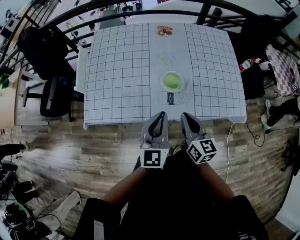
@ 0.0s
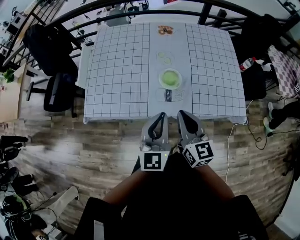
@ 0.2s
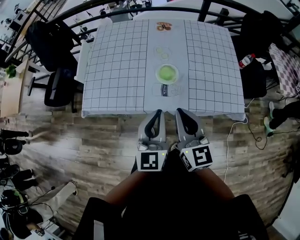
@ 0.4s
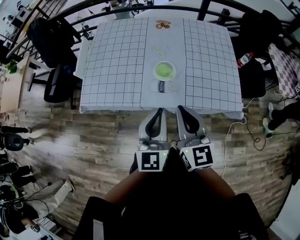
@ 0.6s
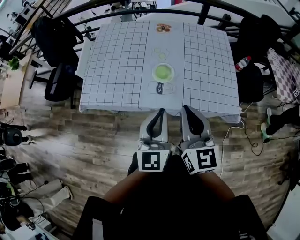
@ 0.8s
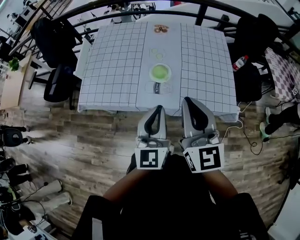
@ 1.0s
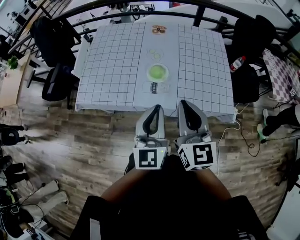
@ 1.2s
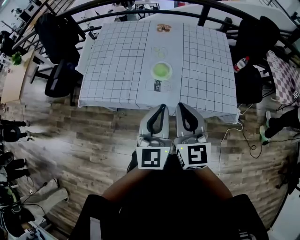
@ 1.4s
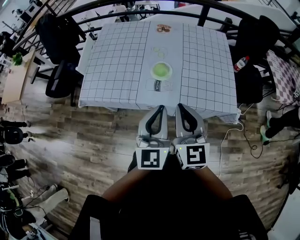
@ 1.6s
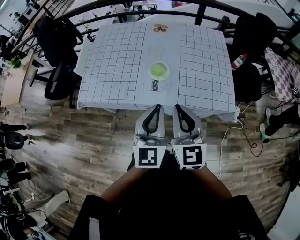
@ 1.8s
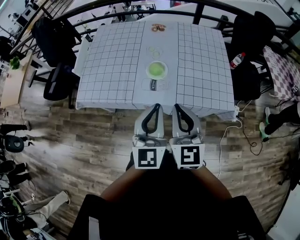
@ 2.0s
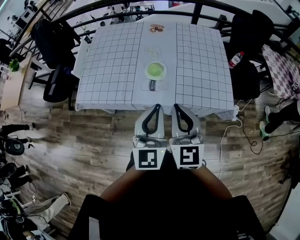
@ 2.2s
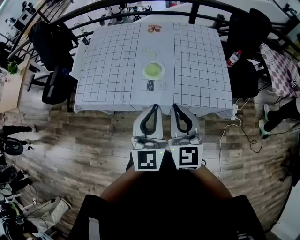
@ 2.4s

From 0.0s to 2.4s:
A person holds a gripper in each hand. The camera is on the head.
From 0.0s to 1.2s: The right gripper travels upward, to the right and backward by roughly 20 cm, and rotates some 20 degrees, while the left gripper moves to the right, backward and upward, about 15 cm.
From 1.2s to 2.4s: The grippers stay close to where they were, moving slightly.

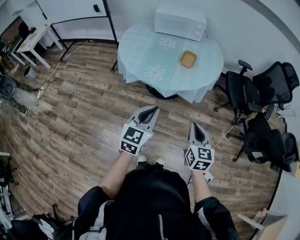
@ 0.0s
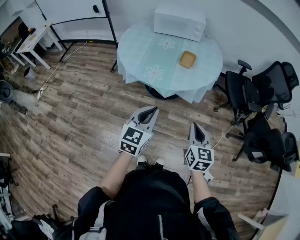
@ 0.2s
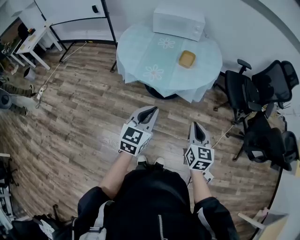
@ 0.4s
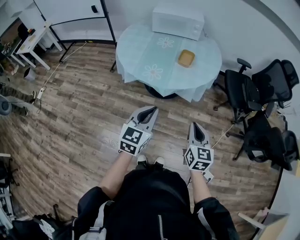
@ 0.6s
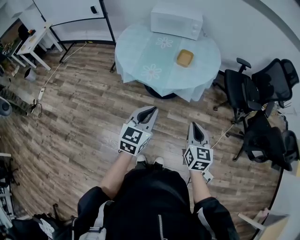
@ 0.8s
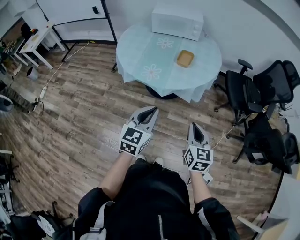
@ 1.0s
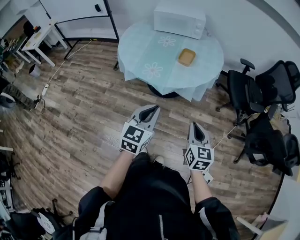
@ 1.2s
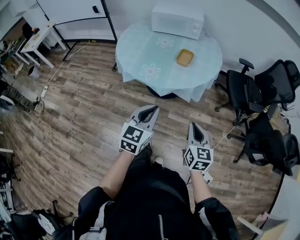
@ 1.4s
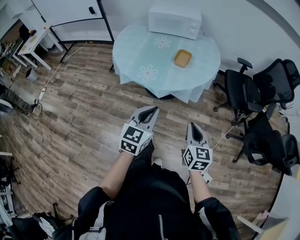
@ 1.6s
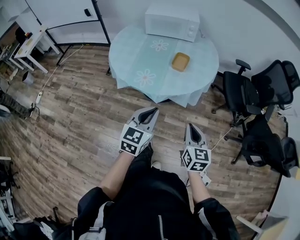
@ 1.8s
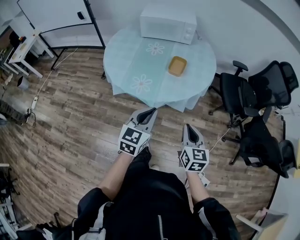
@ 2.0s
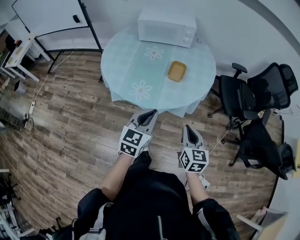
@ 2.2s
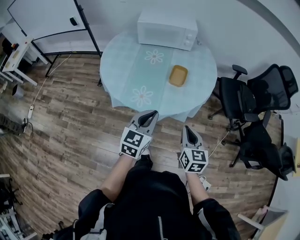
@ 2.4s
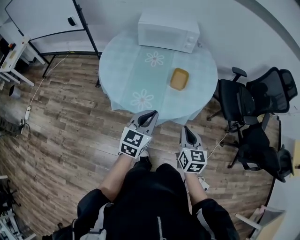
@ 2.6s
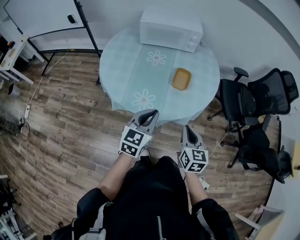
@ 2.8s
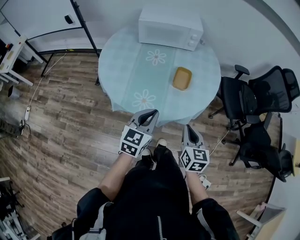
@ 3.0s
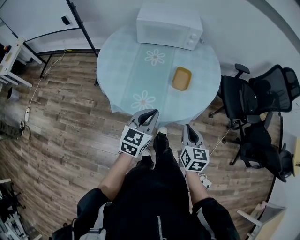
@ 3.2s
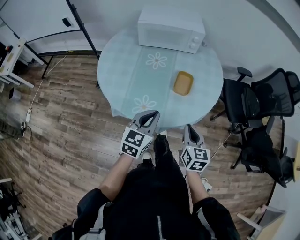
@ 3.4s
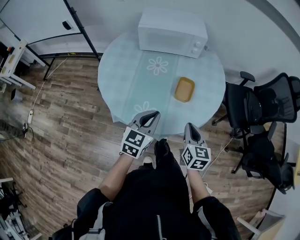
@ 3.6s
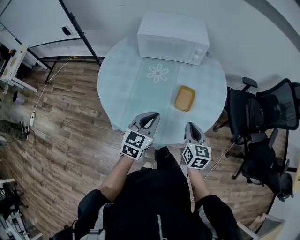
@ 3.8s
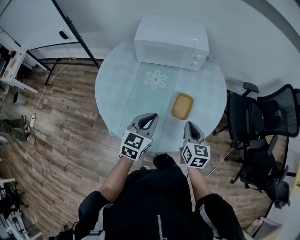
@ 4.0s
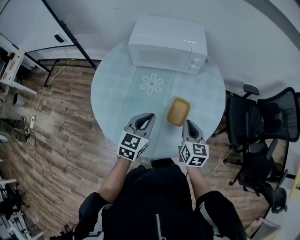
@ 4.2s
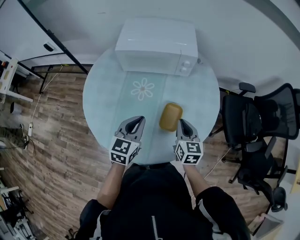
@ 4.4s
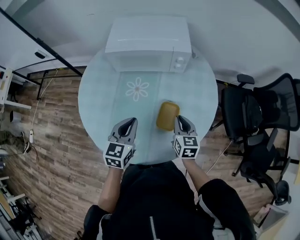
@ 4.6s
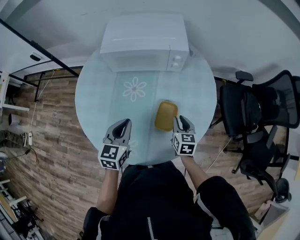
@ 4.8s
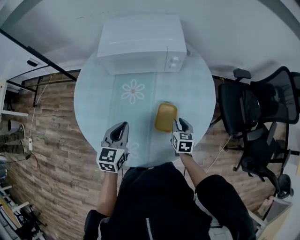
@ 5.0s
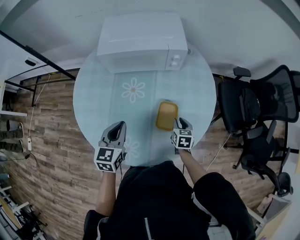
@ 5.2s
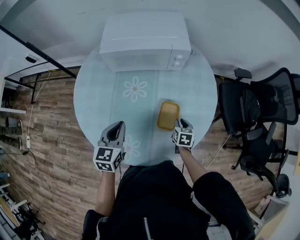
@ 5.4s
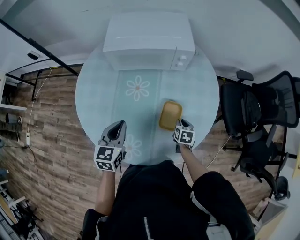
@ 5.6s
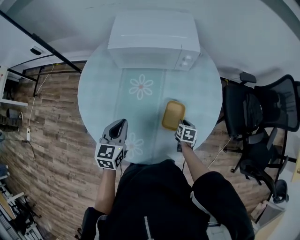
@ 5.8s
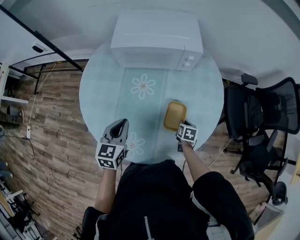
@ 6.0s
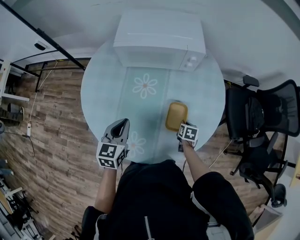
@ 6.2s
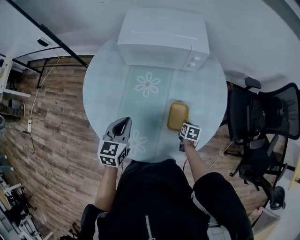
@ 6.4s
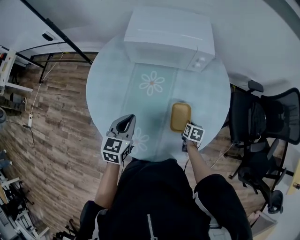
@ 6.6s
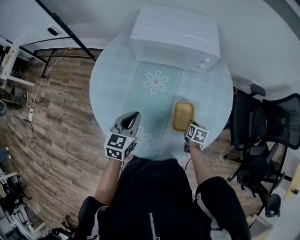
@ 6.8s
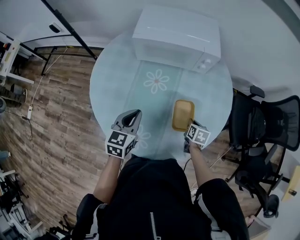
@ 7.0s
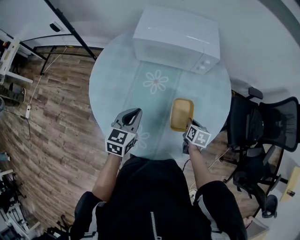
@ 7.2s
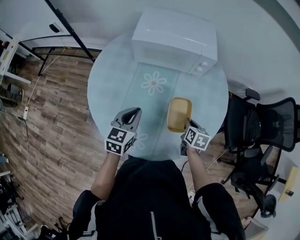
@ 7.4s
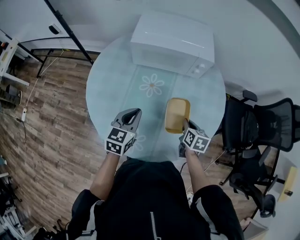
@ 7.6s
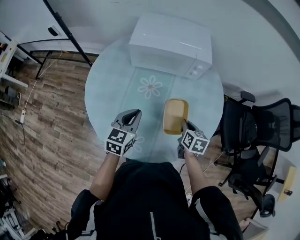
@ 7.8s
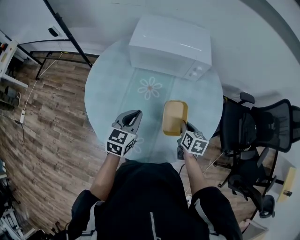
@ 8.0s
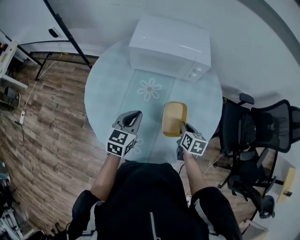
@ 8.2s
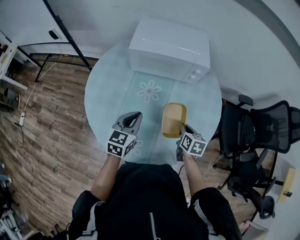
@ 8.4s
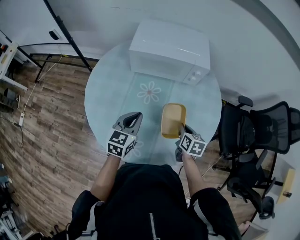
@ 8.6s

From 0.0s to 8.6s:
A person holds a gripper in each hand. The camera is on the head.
From 0.0s to 1.4s: Both grippers travel together to the right, roughly 5 cm.
From 1.4s to 2.8s: Both grippers move forward and to the left, some 25 cm.
From 2.8s to 4.4s: Both grippers move forward, some 30 cm.
From 4.4s to 5.8s: The left gripper goes about 10 cm to the left. Meanwhile the right gripper travels downward by some 20 cm, and angles its fingers downward, by about 30 degrees.
From 5.8s to 7.2s: The right gripper heads upward, covering roughly 10 cm.
From 7.2s to 8.6s: The right gripper is displaced upward by approximately 5 cm.

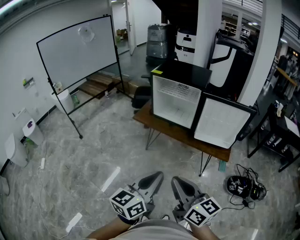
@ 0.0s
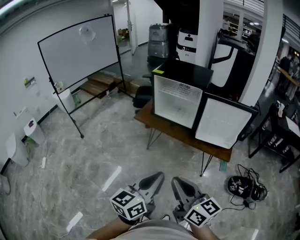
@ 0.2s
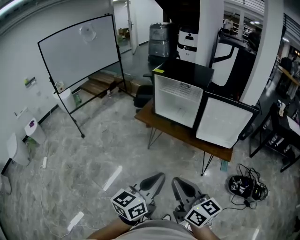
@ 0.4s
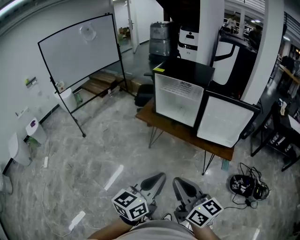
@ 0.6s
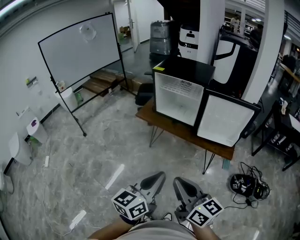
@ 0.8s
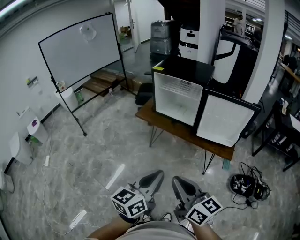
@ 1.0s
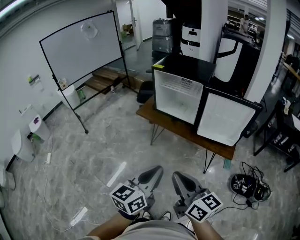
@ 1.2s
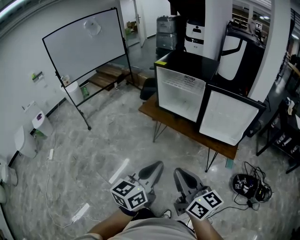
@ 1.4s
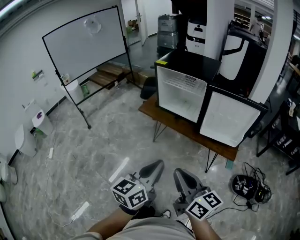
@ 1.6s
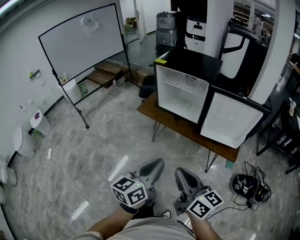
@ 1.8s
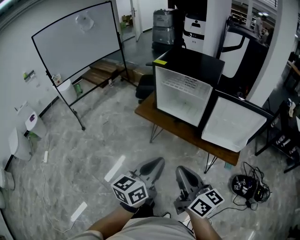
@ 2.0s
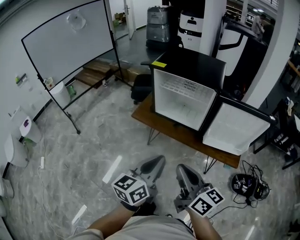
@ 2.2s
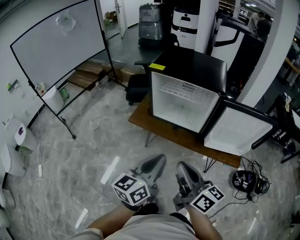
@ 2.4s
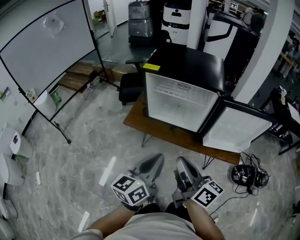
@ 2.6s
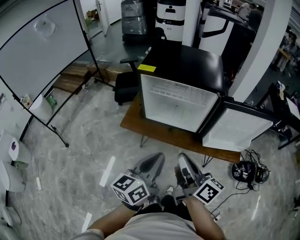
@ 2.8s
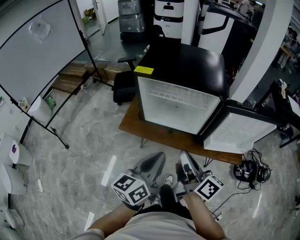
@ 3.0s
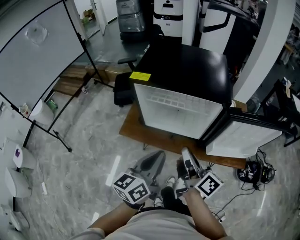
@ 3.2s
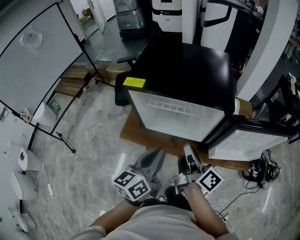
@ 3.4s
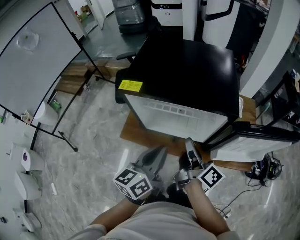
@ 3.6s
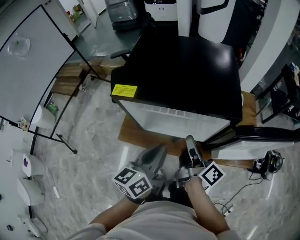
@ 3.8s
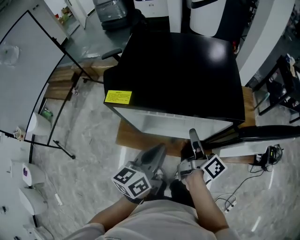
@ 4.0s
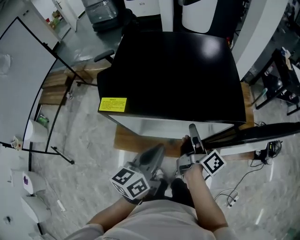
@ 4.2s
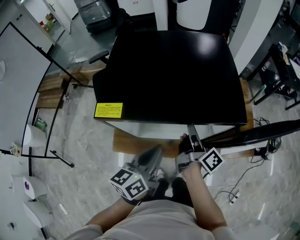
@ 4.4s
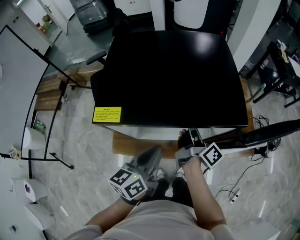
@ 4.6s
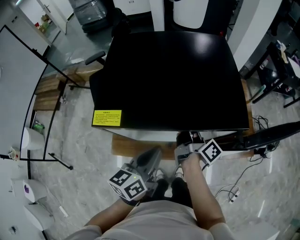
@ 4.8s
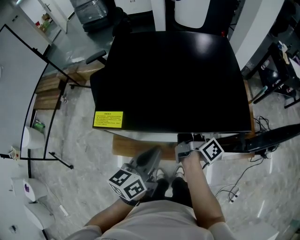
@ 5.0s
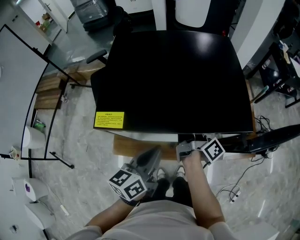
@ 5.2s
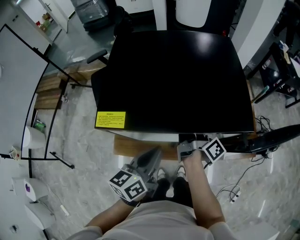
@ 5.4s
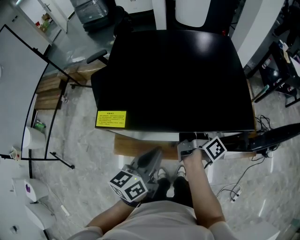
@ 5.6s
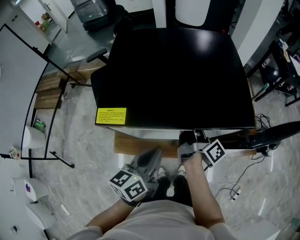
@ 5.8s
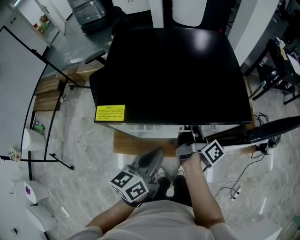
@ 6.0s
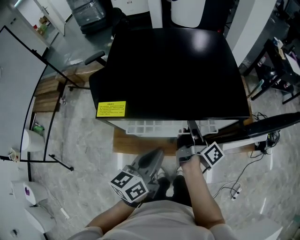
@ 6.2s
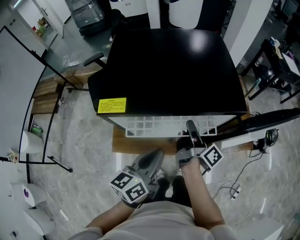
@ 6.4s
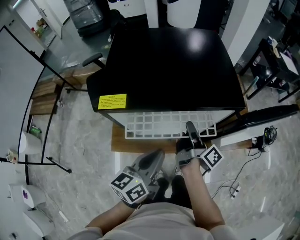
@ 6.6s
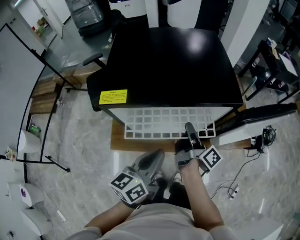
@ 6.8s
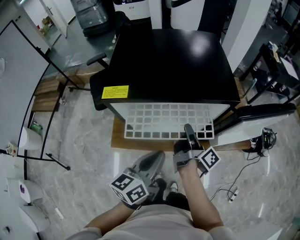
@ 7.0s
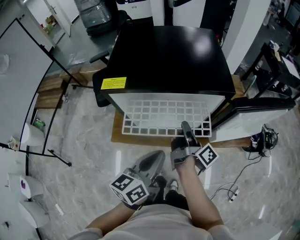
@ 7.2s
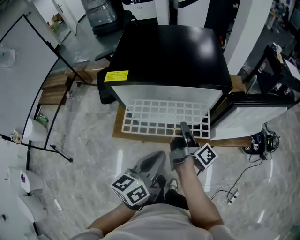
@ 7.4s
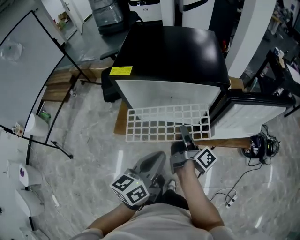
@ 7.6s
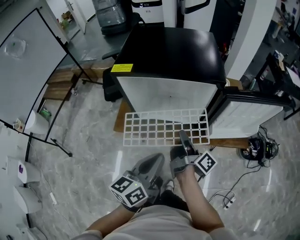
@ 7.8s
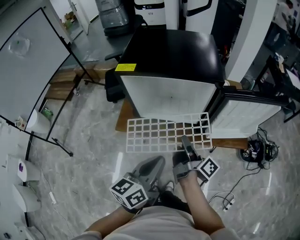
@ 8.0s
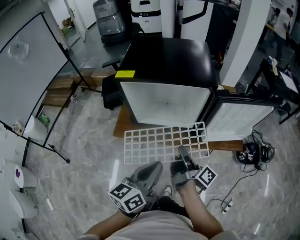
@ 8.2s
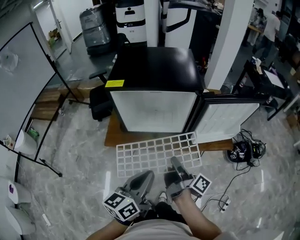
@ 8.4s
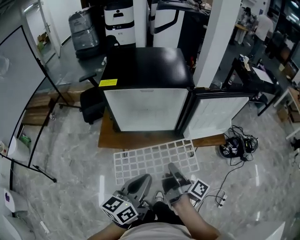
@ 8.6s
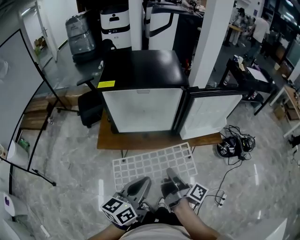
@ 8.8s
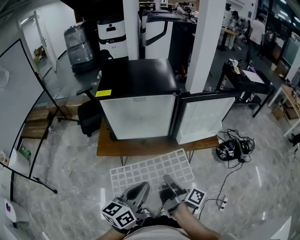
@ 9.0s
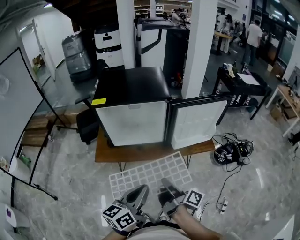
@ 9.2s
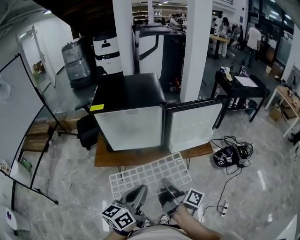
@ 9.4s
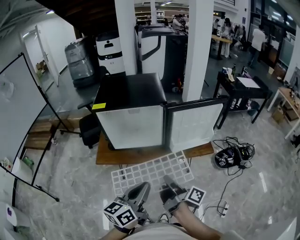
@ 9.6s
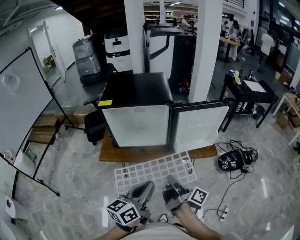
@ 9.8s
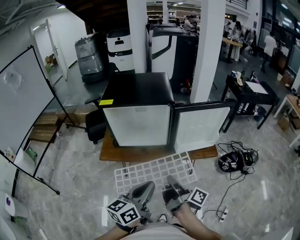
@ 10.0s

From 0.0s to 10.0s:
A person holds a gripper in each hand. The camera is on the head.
From 0.0s to 1.4s: The right gripper ends up about 5 cm from where it was.
From 1.4s to 2.8s: Both grippers travel together forward, approximately 30 cm. The right gripper turns by some 30 degrees.
From 2.8s to 4.2s: The right gripper moves forward and downward, approximately 30 cm, swivels some 40 degrees, and opens up. The left gripper is displaced forward by approximately 25 cm.
From 4.2s to 5.8s: The right gripper shifts by approximately 5 cm.
From 5.8s to 7.2s: The left gripper is displaced backward and to the right by about 10 cm, while the right gripper travels backward by some 10 cm.
From 7.2s to 8.6s: The two grippers go about 20 cm backward.
From 8.6s to 10.0s: Both grippers travel together to the right, about 5 cm.

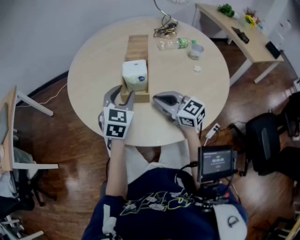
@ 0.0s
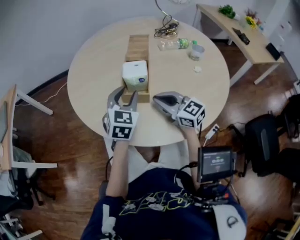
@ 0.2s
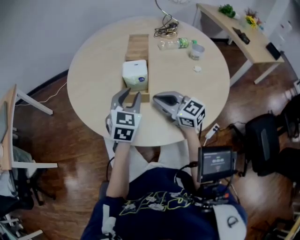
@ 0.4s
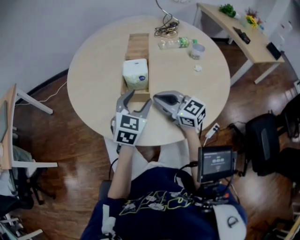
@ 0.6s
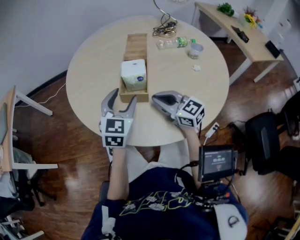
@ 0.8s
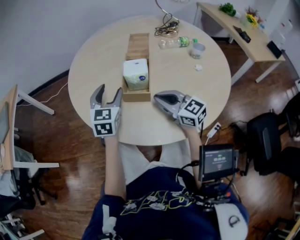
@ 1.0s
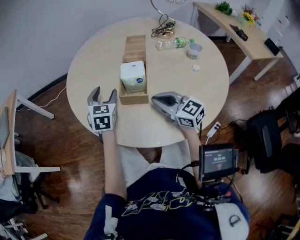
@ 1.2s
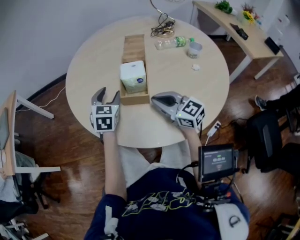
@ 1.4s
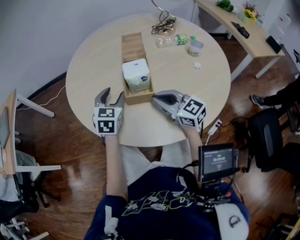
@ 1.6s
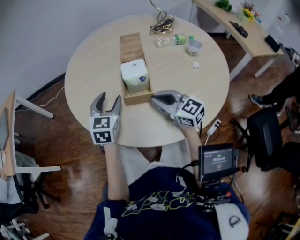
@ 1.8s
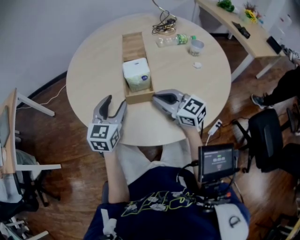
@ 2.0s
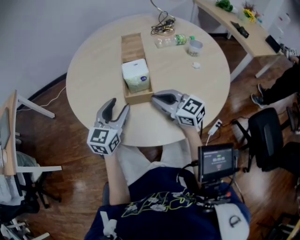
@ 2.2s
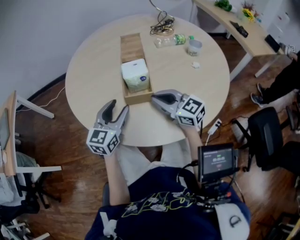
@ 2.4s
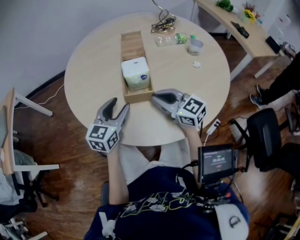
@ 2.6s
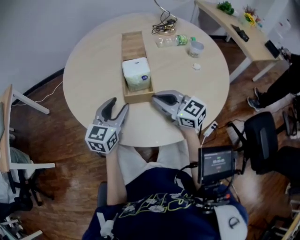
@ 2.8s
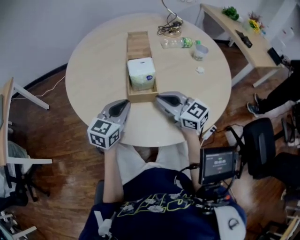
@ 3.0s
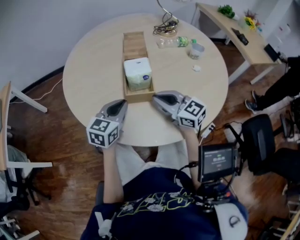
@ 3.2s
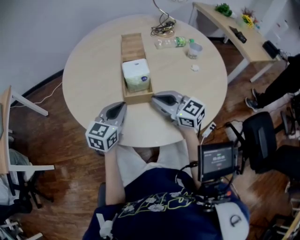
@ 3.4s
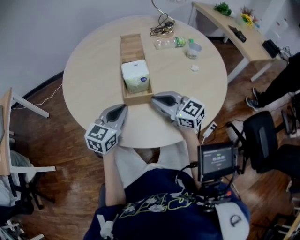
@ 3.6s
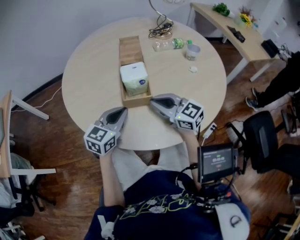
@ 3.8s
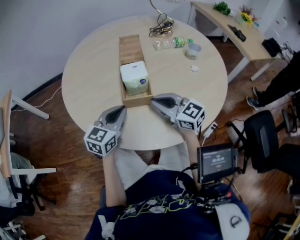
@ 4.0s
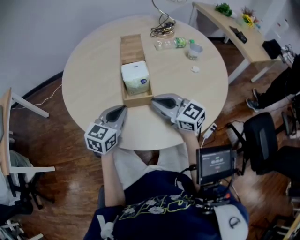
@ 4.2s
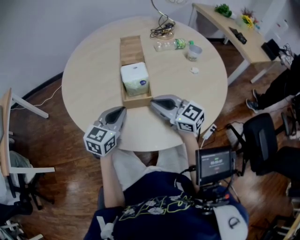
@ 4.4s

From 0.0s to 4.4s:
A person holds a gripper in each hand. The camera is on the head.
From 0.0s to 1.4s: The left gripper travels forward and to the left by about 10 cm.
From 1.4s to 3.0s: The left gripper shifts about 10 cm backward, changes its angle by about 30 degrees, and closes.
From 3.0s to 4.4s: The grippers move only a little.
